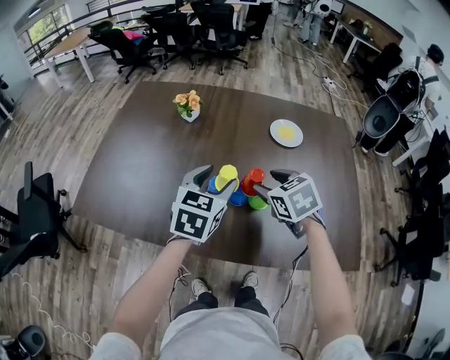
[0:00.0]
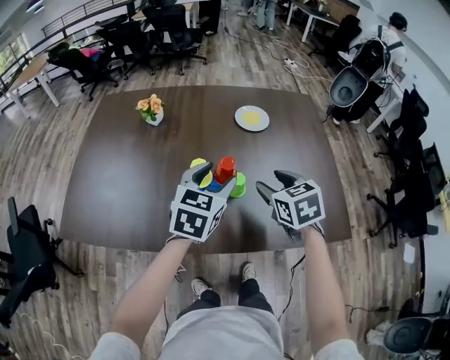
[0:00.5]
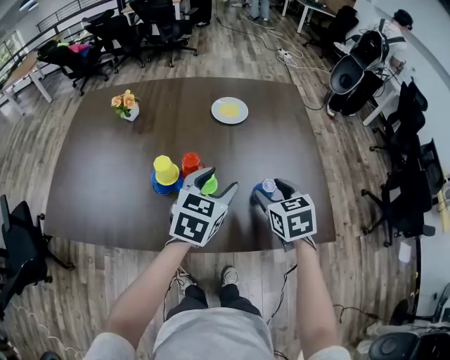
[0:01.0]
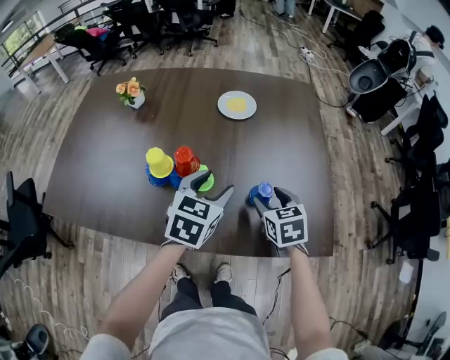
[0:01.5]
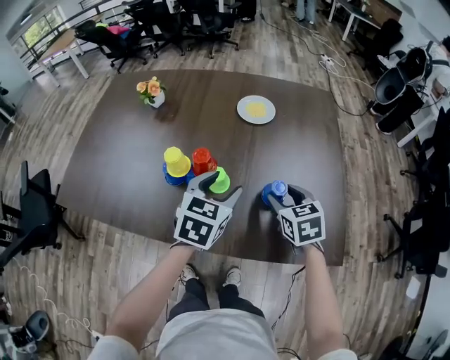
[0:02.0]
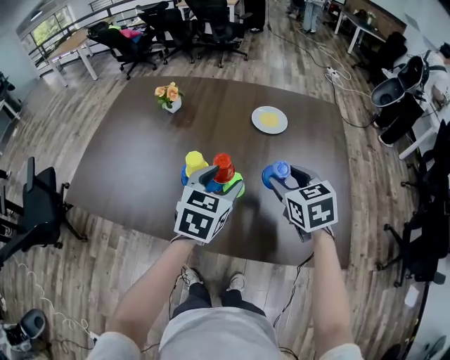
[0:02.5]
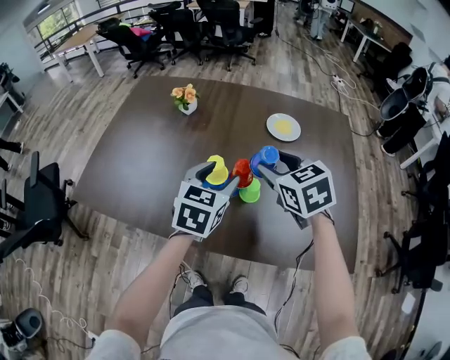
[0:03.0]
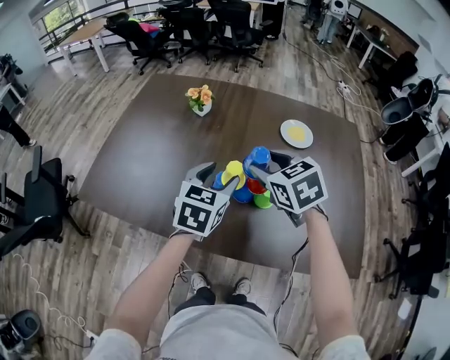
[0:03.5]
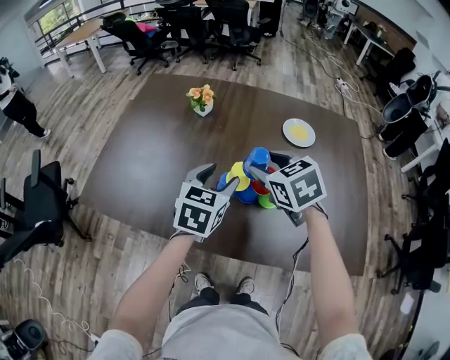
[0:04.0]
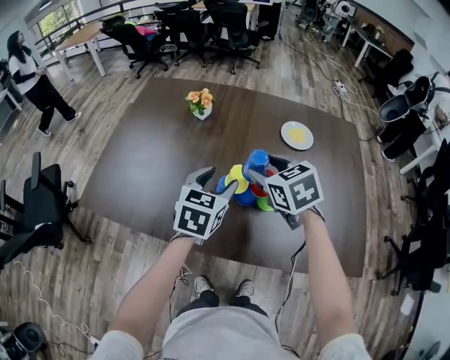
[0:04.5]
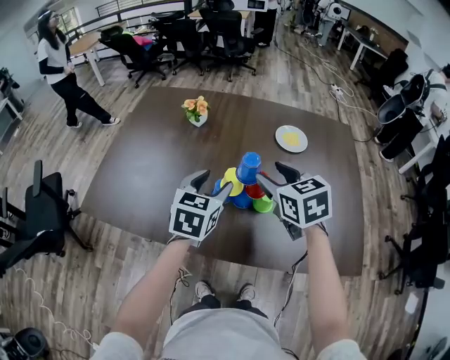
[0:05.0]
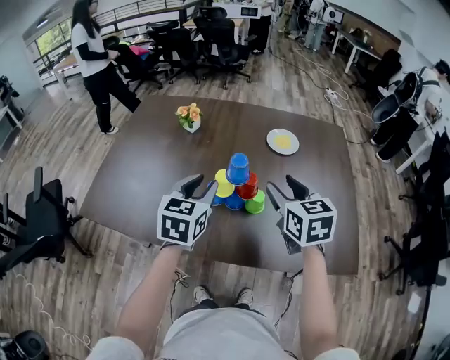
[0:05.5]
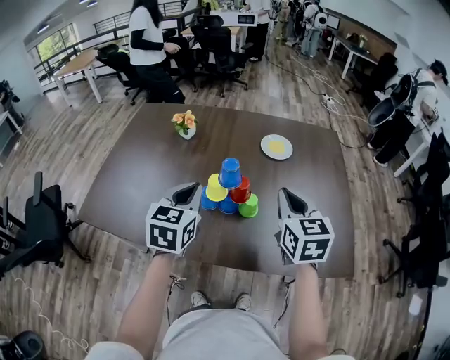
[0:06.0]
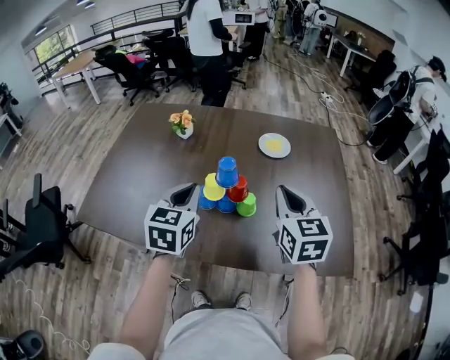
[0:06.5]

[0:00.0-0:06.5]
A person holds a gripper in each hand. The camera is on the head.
0:00.0 to 0:02.0: The two grippers go some 20 cm to the right.
0:02.0 to 0:04.5: The left gripper moves to the left, some 20 cm; the right gripper is displaced to the left and upward by some 30 cm.
0:04.5 to 0:06.5: The right gripper moves to the right, backward and upward, approximately 15 cm, changes its angle by roughly 30 degrees, and closes its fingers. The left gripper heads upward, covering some 5 cm, and closes up.

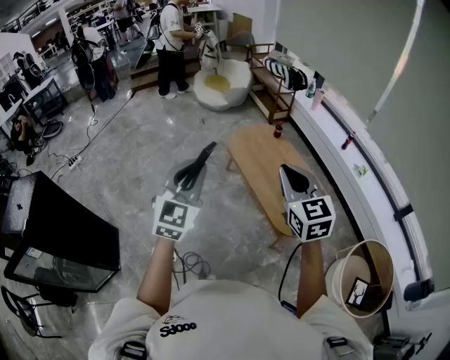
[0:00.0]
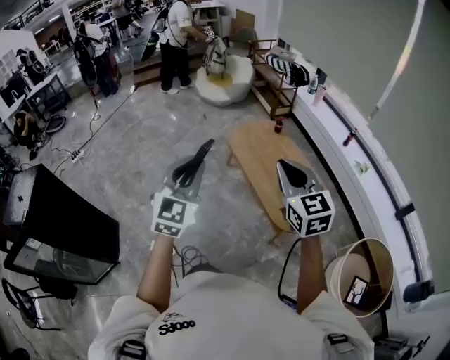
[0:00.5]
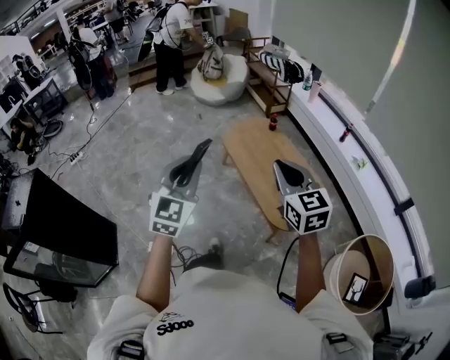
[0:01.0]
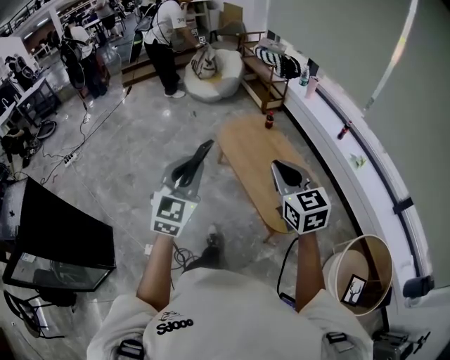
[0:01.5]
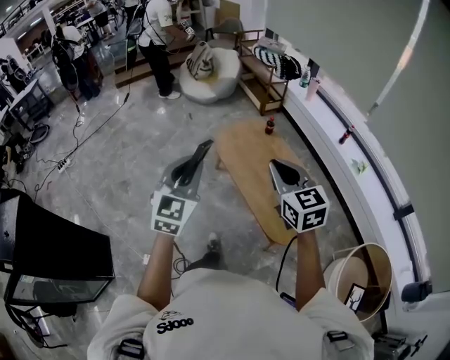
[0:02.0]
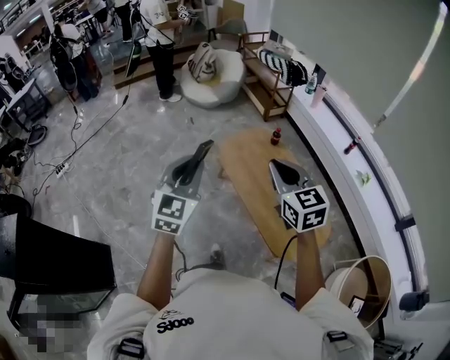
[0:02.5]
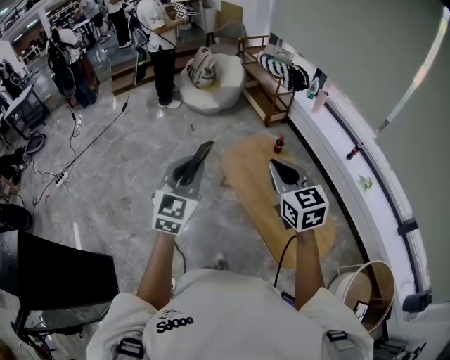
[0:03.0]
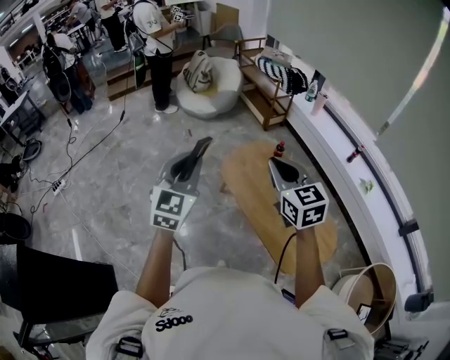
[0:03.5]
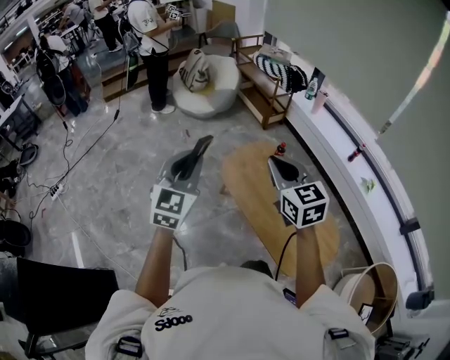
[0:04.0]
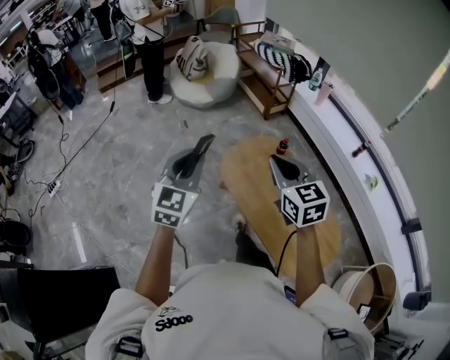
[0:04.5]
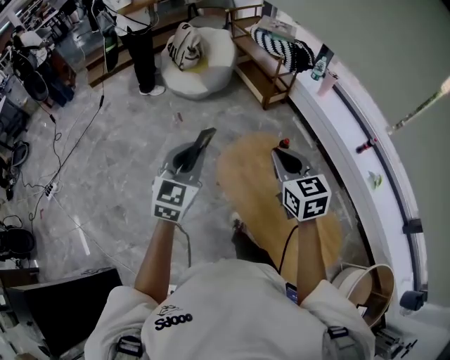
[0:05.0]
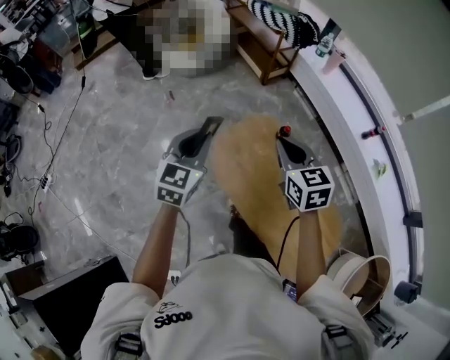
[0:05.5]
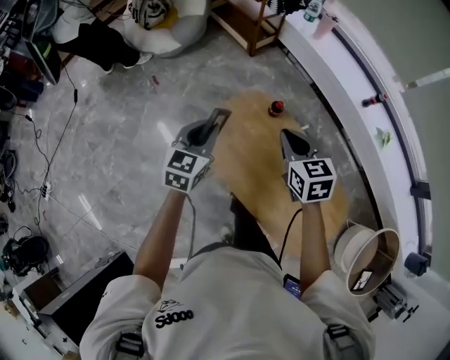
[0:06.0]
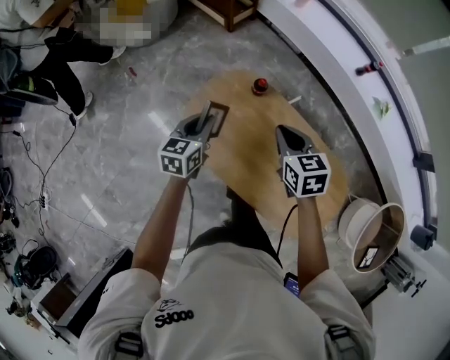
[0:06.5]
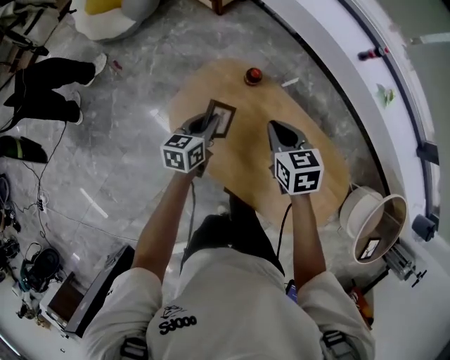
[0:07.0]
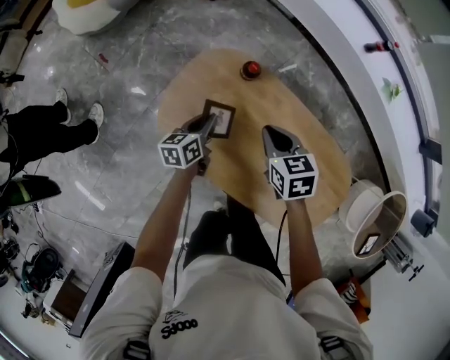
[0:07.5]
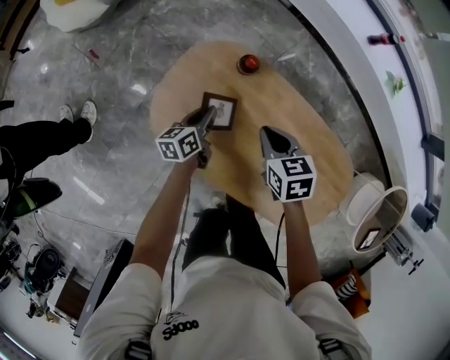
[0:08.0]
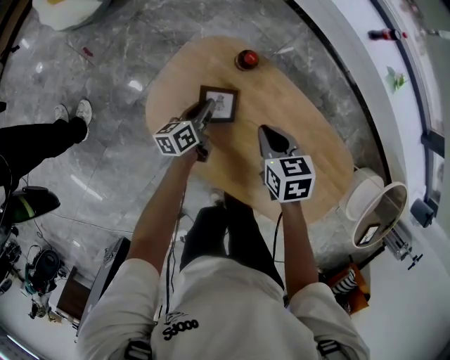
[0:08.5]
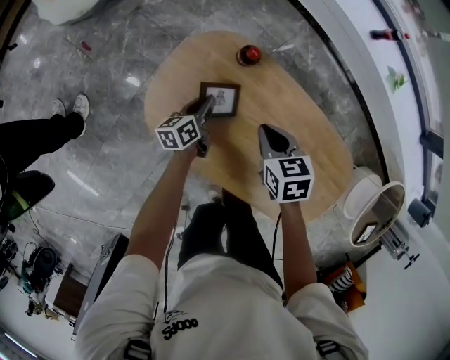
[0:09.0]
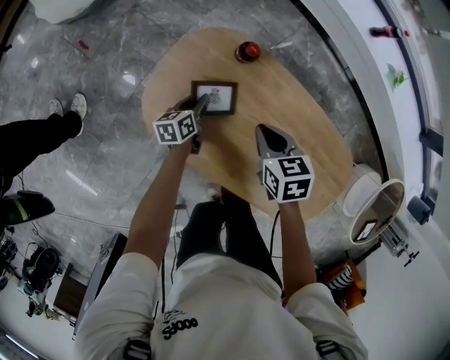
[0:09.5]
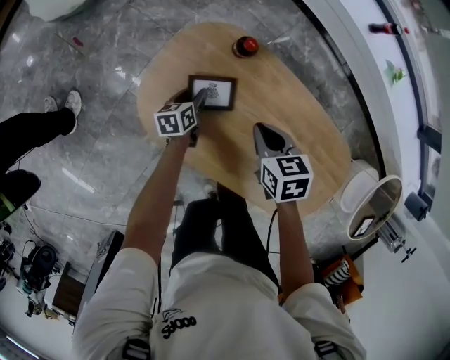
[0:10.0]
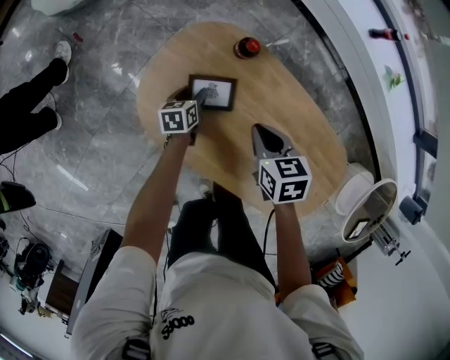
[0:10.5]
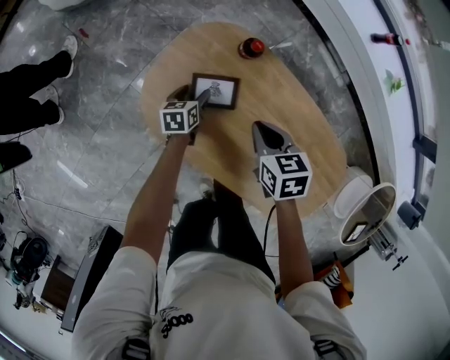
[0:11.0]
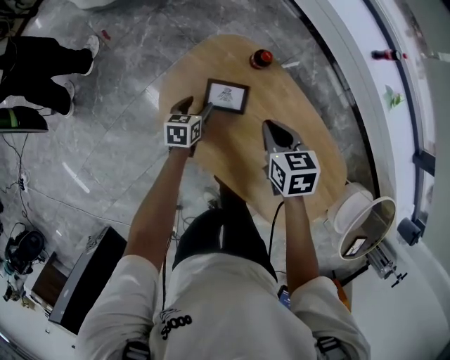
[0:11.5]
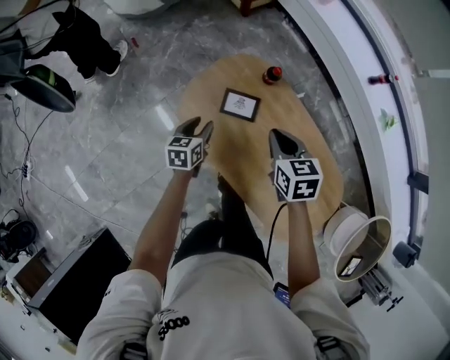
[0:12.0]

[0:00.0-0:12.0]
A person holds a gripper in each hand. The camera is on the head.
0:00.0 to 0:02.0: The two grippers go roughly 15 cm forward.
0:02.0 to 0:04.0: Both grippers move forward, some 25 cm.
0:04.0 to 0:06.0: The two grippers go some 40 cm forward, downward and to the right. The left gripper swivels about 30 degrees, while the right gripper rotates approximately 30 degrees.
0:06.0 to 0:08.0: Both grippers move downward, roughly 30 cm. The left gripper rolls counterclockwise, seen from behind, by some 40 degrees. The right gripper swivels approximately 20 degrees.
0:08.0 to 0:10.0: The left gripper travels downward by about 10 cm, and opens up.
0:10.0 to 0:12.0: The right gripper shifts approximately 15 cm upward; the left gripper goes approximately 20 cm upward and backward.

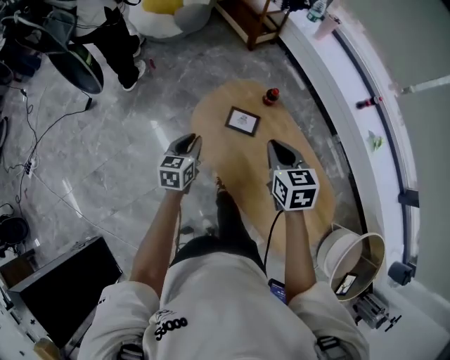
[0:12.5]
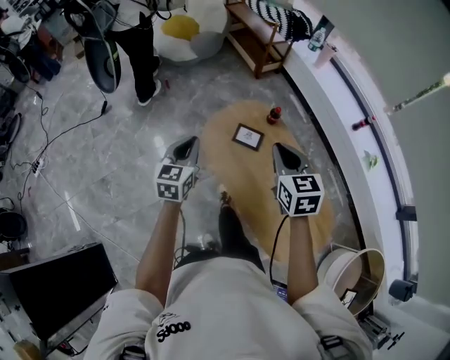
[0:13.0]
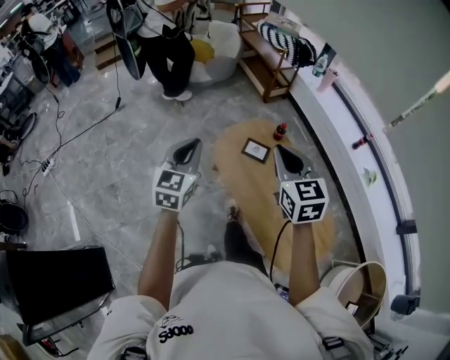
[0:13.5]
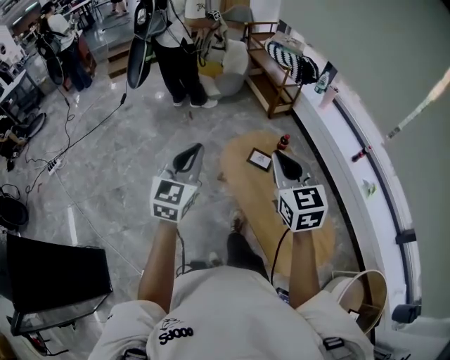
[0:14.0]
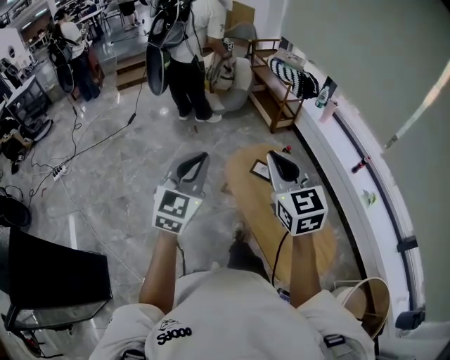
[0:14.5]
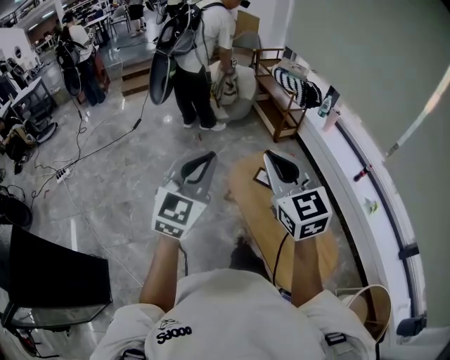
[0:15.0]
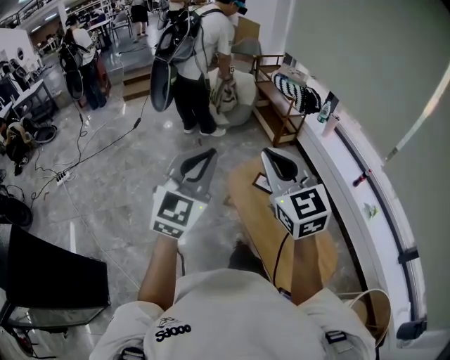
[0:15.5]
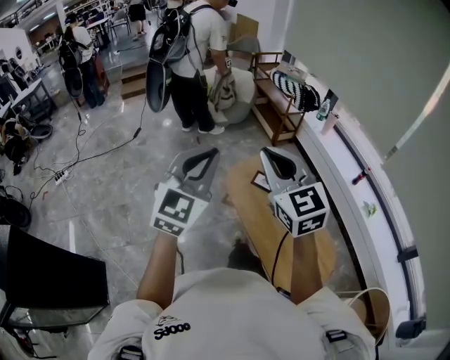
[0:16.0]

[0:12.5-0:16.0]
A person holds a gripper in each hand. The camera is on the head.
0:12.5 to 0:14.5: The right gripper is displaced upward, backward and to the left by roughly 40 cm, and swivels some 40 degrees, while the left gripper travels upward and backward by some 50 cm, and swivels about 40 degrees.
0:14.5 to 0:16.0: The right gripper changes place by roughly 5 cm, while the left gripper shifts roughly 5 cm upward.

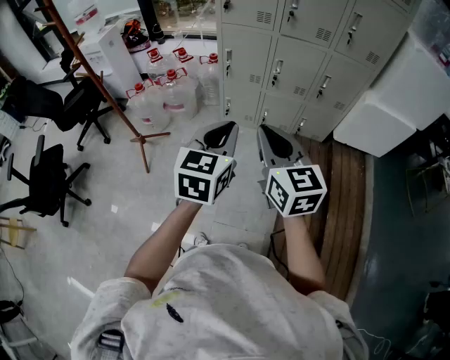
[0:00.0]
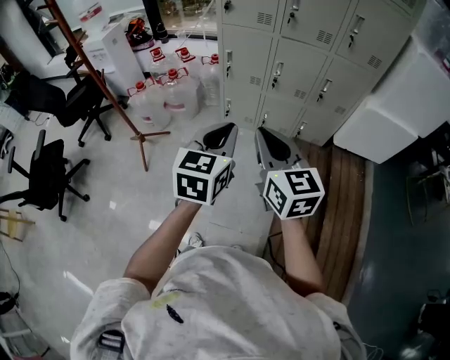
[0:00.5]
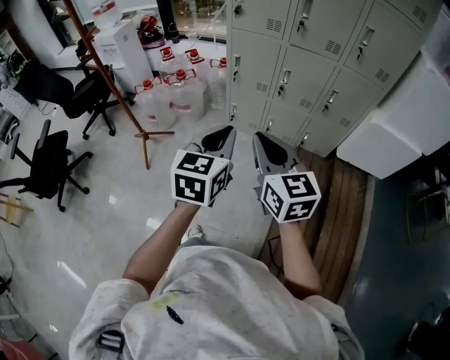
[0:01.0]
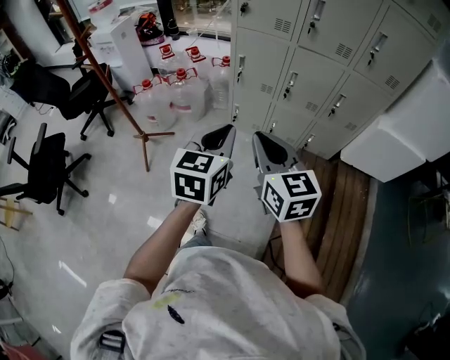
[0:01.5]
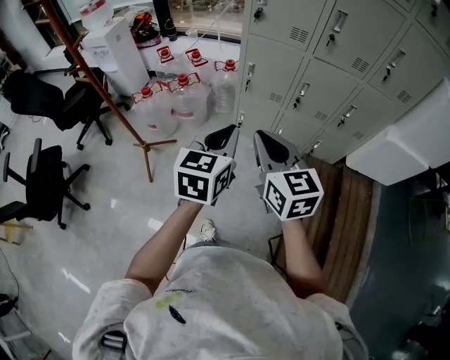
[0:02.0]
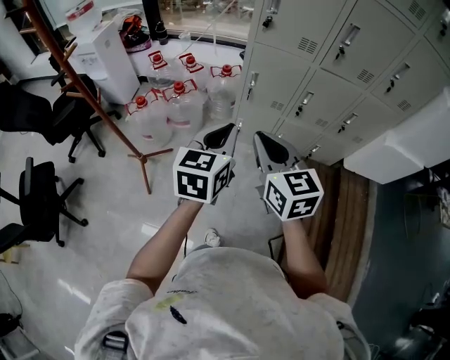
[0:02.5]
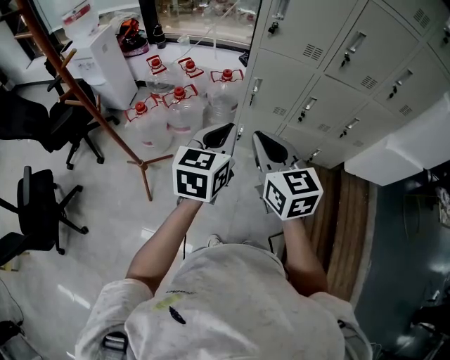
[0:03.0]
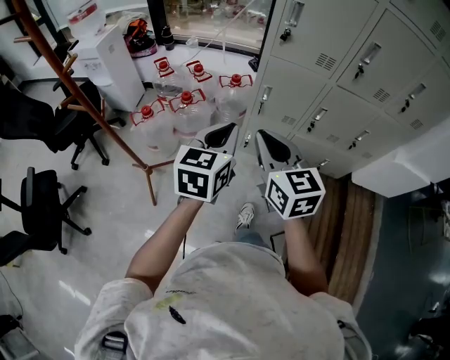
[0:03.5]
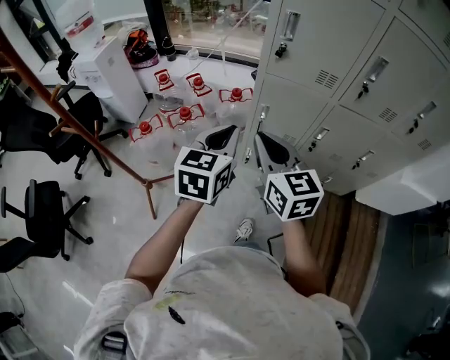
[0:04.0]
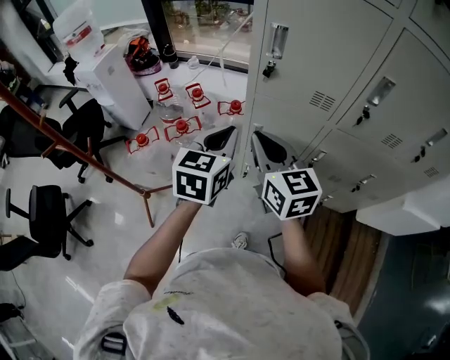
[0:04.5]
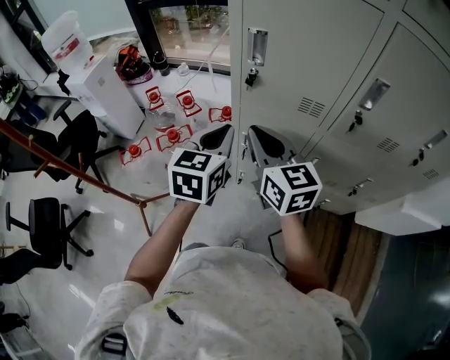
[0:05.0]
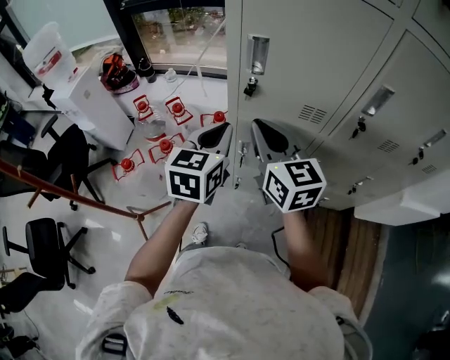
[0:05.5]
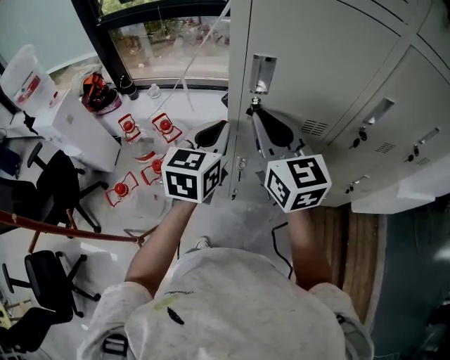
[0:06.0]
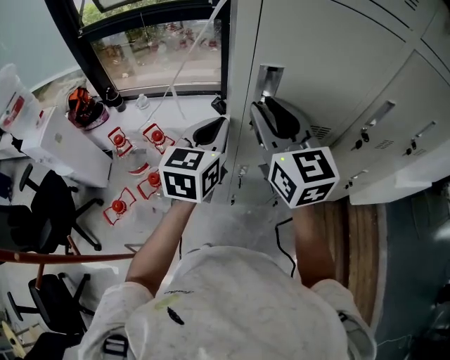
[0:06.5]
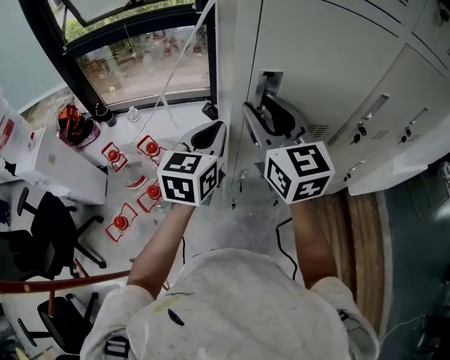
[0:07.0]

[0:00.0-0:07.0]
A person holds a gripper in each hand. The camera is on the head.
0:00.0 to 0:02.0: Both grippers travel together forward and to the left, about 20 cm.
0:02.0 to 0:03.5: Both grippers travel together forward and to the left, some 20 cm.
0:03.5 to 0:05.0: Both grippers move forward and to the right, approximately 25 cm.
0:05.0 to 0:07.0: The right gripper heads forward and upward, covering approximately 20 cm, changes its angle by approximately 30 degrees, and opens up. The left gripper goes about 15 cm forward, and swivels some 20 degrees.
